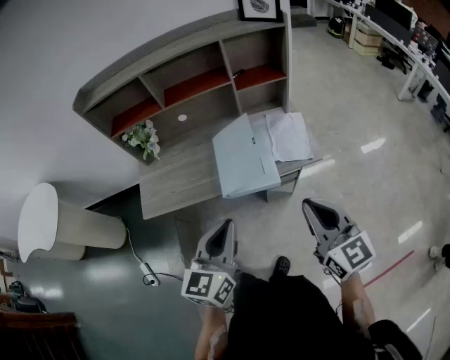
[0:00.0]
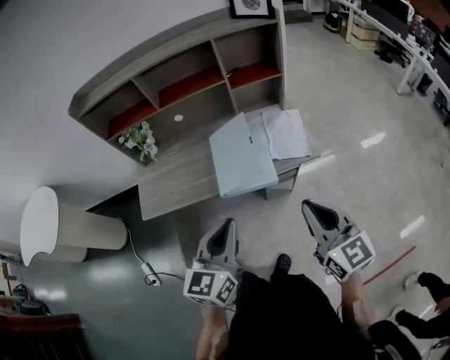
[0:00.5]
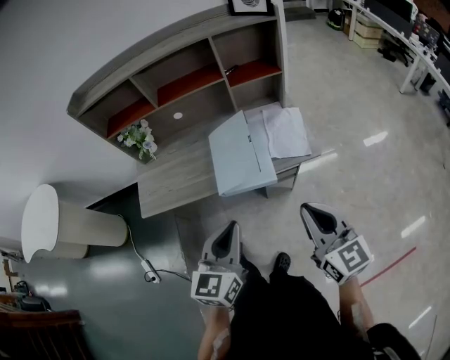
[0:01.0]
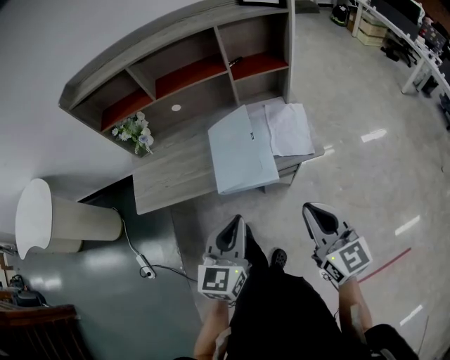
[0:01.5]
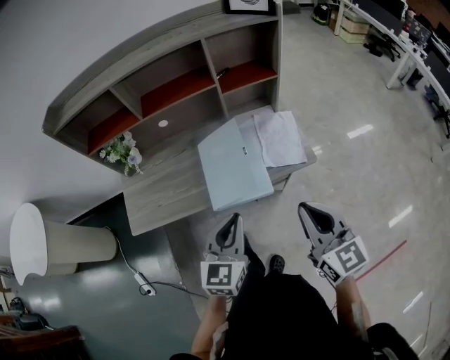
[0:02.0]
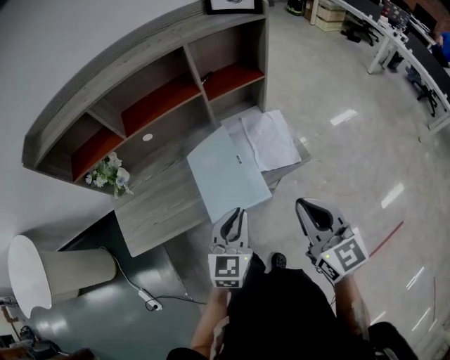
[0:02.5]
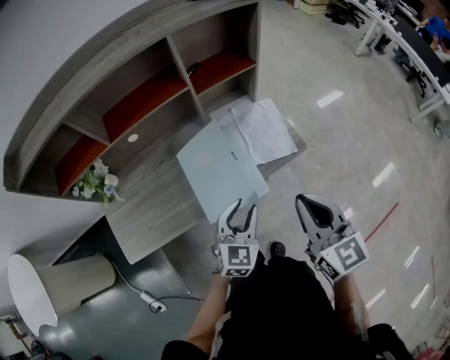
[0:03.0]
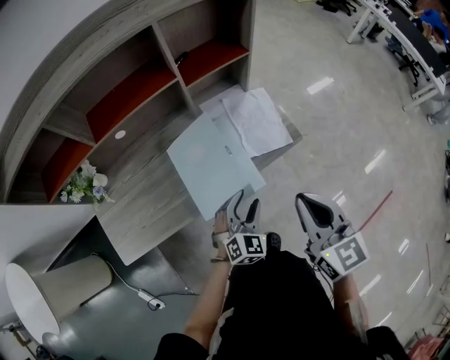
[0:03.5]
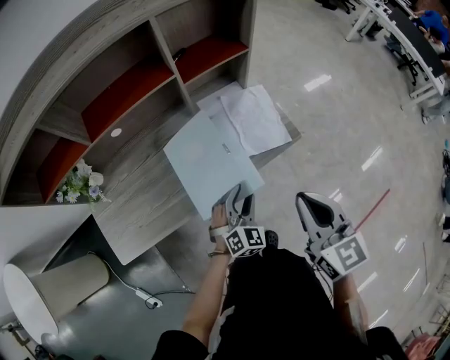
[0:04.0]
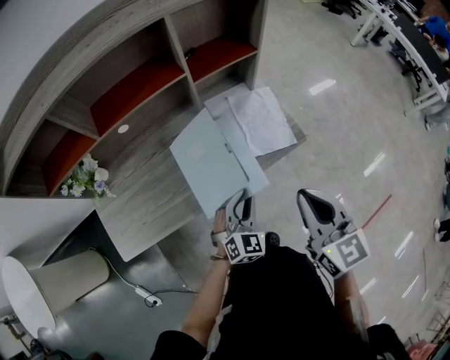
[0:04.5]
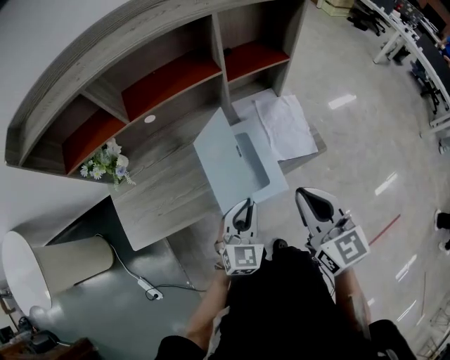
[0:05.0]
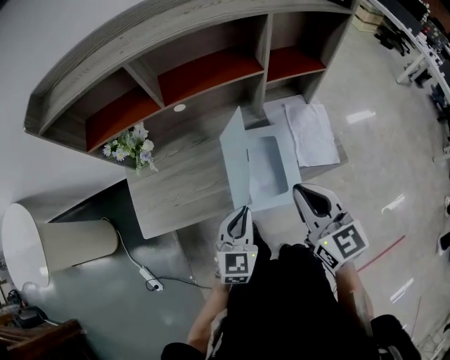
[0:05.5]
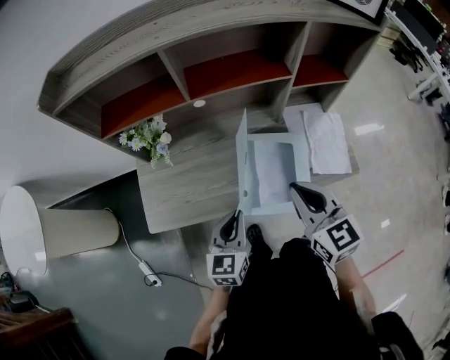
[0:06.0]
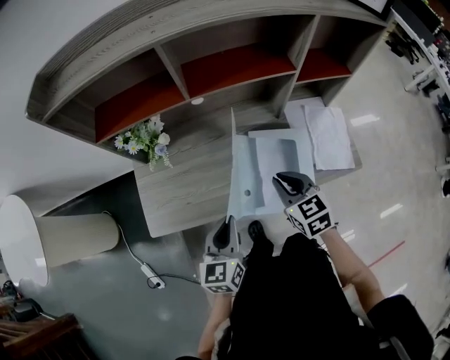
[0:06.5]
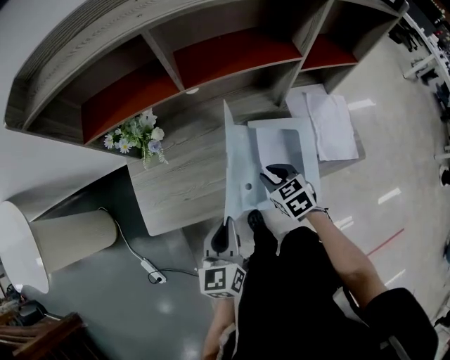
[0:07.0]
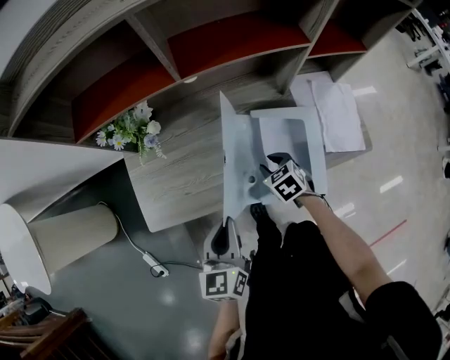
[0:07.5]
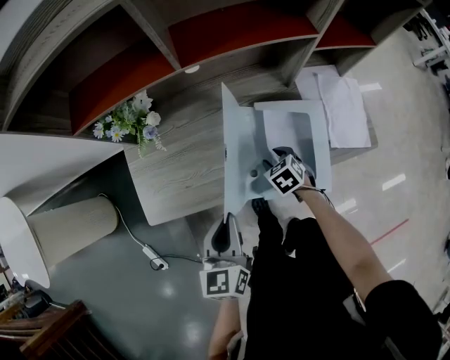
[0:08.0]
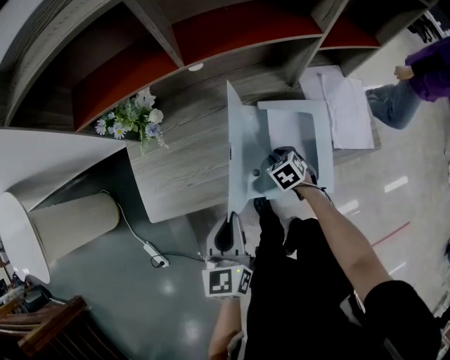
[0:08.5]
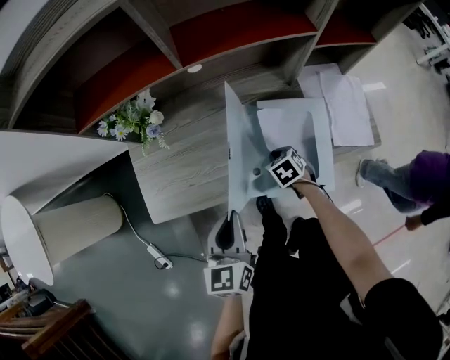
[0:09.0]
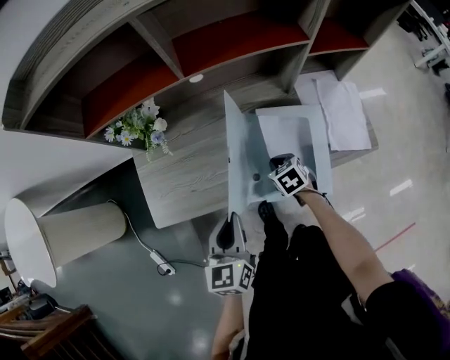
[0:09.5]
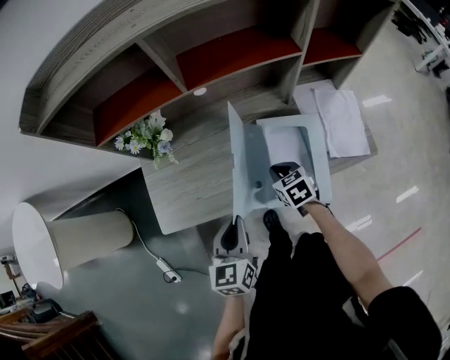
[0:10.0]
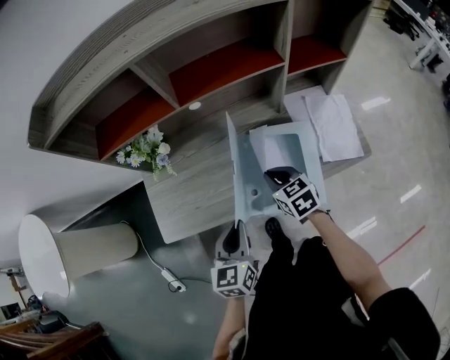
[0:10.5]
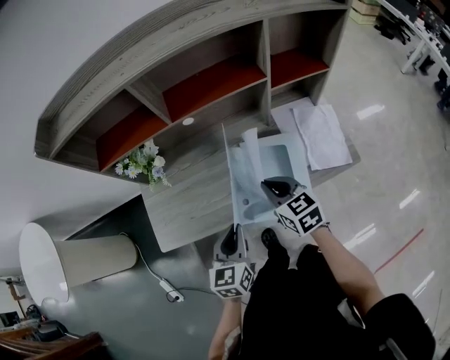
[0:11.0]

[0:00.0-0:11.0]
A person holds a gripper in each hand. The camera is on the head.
0:00.0 to 0:02.0: The right gripper travels forward by roughly 5 cm, while the left gripper goes approximately 10 cm forward and downward.
0:02.0 to 0:03.5: The right gripper travels forward by roughly 5 cm. The left gripper heads downward and forward, covering some 20 cm, changes its angle by about 40 degrees, and opens its fingers.
0:03.5 to 0:05.5: The left gripper is displaced to the left and upward by about 20 cm, swivels about 30 degrees, and closes its fingers, while the right gripper shifts about 15 cm to the left.
0:05.5 to 0:07.5: The left gripper moves to the left, about 15 cm, and changes its angle by some 30 degrees; the right gripper shifts about 30 cm downward, tips its fingers downward by roughly 40 degrees, and opens its fingers.
0:07.5 to 0:09.0: The right gripper shifts approximately 5 cm downward, and closes its fingers.
0:09.0 to 0:11.0: The right gripper goes some 25 cm upward, and angles its fingers upward, by about 30 degrees. Meanwhile the left gripper moves to the right, about 5 cm.

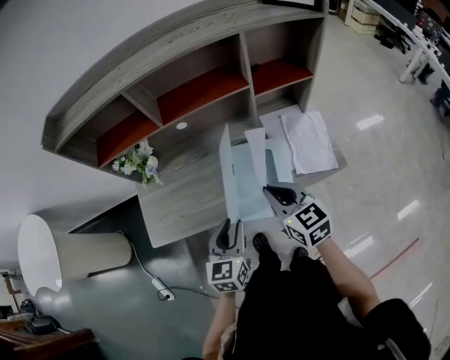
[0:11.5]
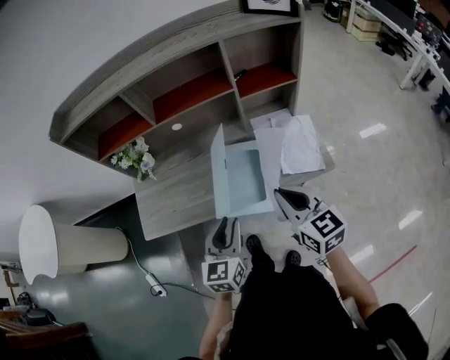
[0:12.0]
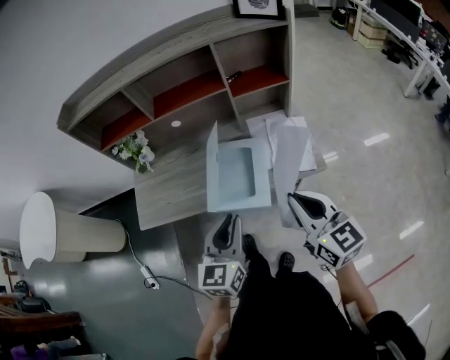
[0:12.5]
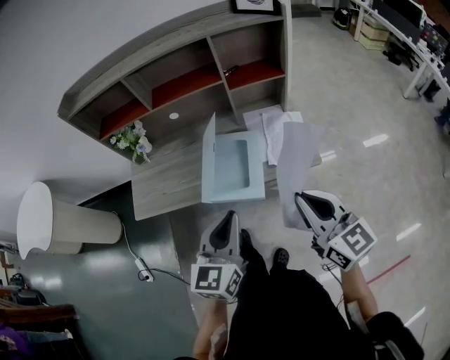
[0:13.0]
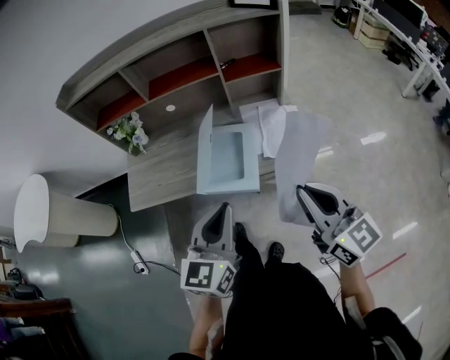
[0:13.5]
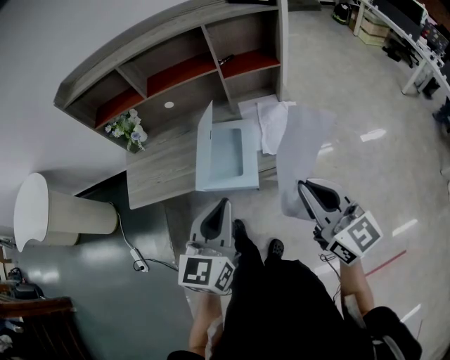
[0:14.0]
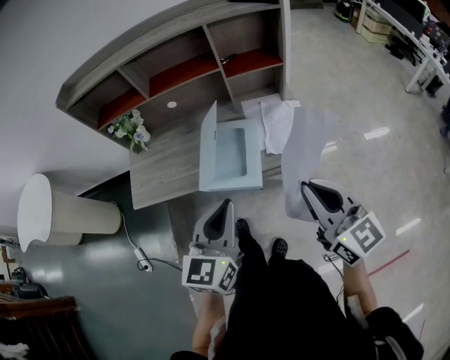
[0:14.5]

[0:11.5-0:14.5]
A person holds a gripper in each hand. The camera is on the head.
0:11.5 to 0:13.0: The left gripper is displaced backward, upward and to the right by about 25 cm, and closes, while the right gripper shifts about 30 cm backward, to the right and upward.
0:13.0 to 0:14.5: The grippers make only small movements.

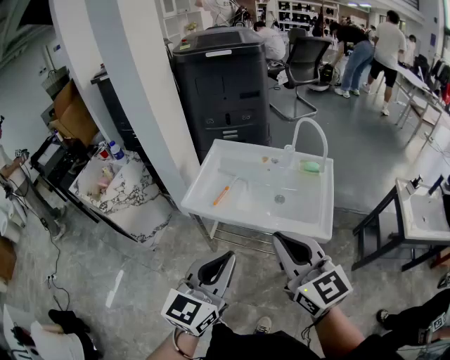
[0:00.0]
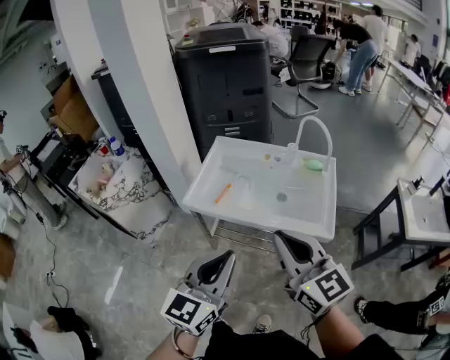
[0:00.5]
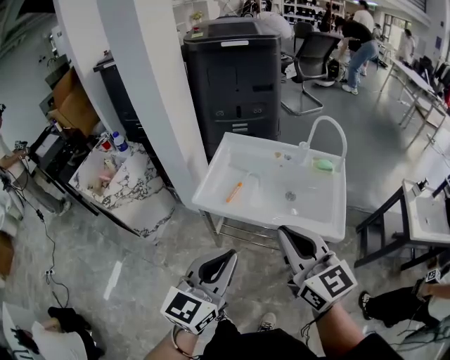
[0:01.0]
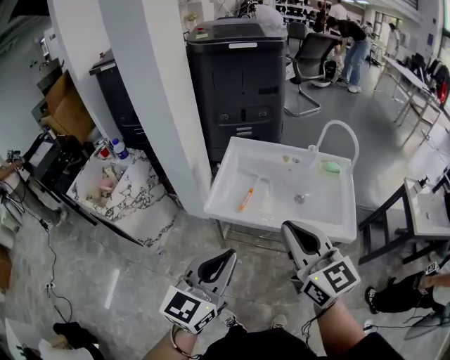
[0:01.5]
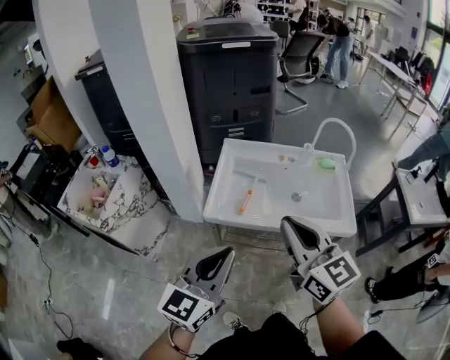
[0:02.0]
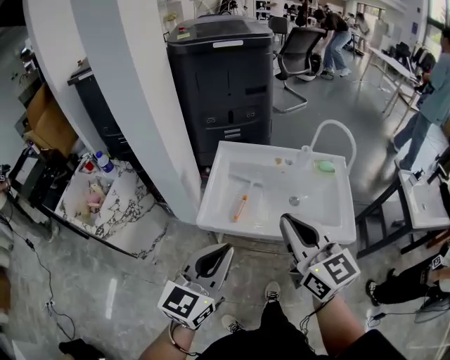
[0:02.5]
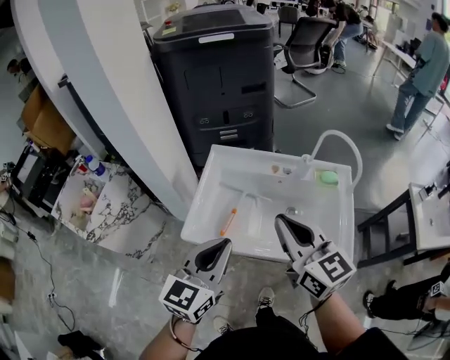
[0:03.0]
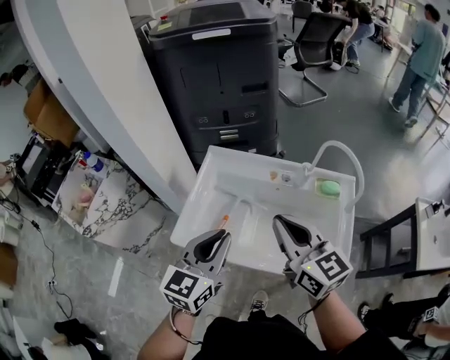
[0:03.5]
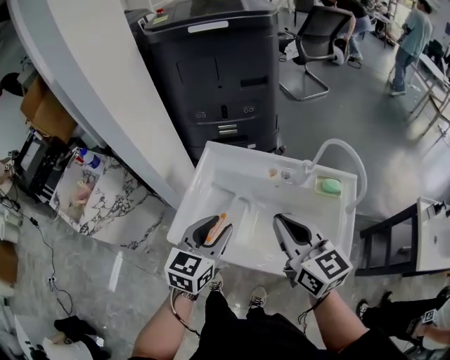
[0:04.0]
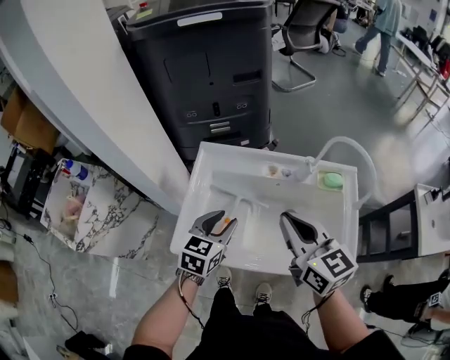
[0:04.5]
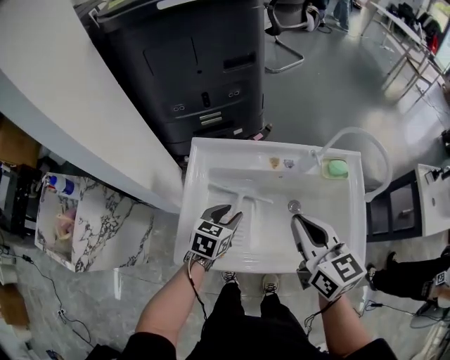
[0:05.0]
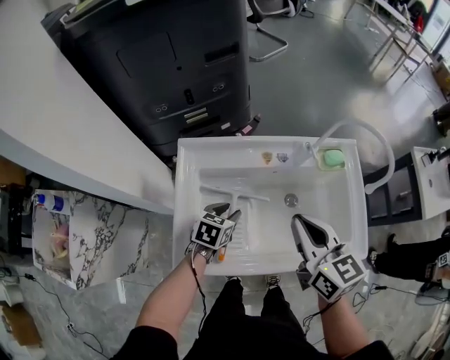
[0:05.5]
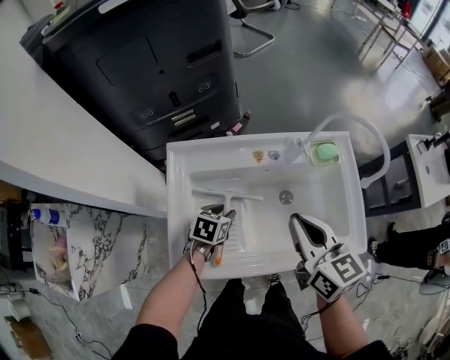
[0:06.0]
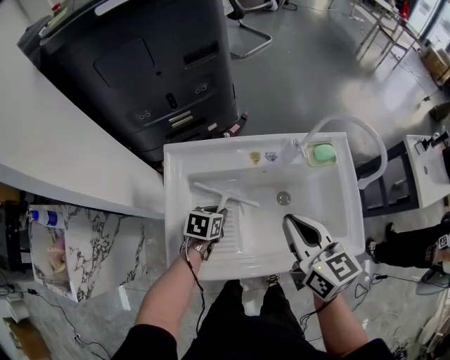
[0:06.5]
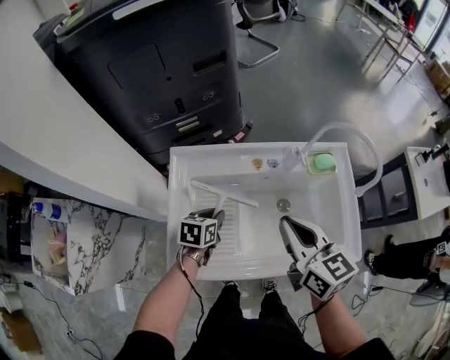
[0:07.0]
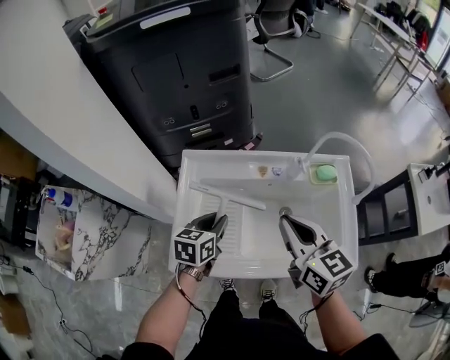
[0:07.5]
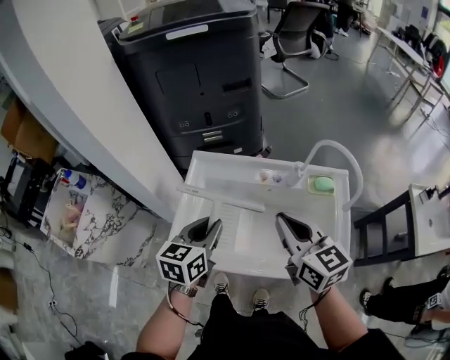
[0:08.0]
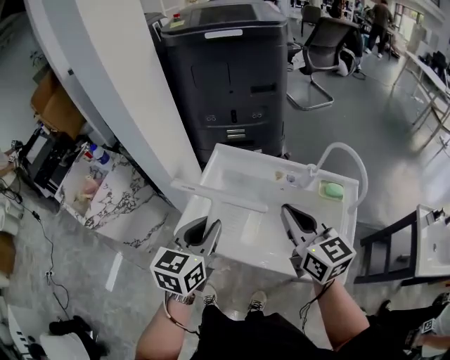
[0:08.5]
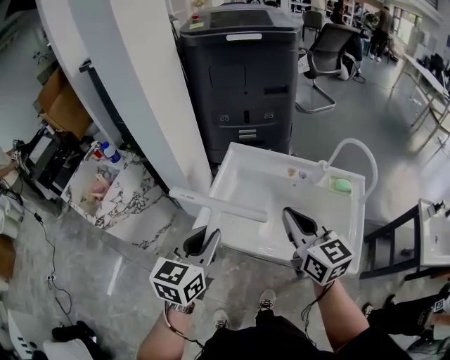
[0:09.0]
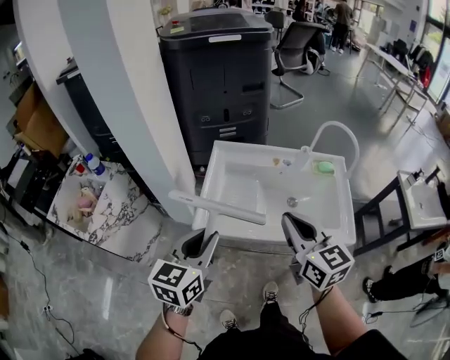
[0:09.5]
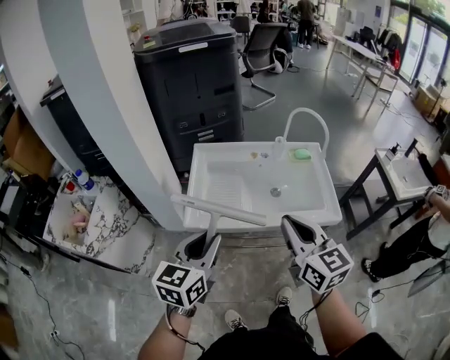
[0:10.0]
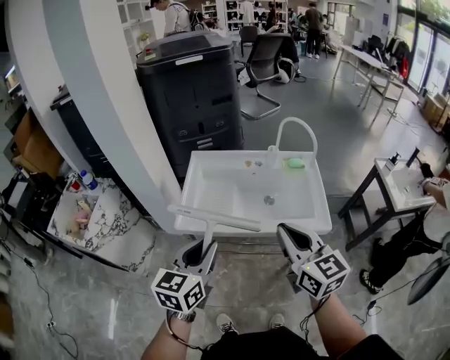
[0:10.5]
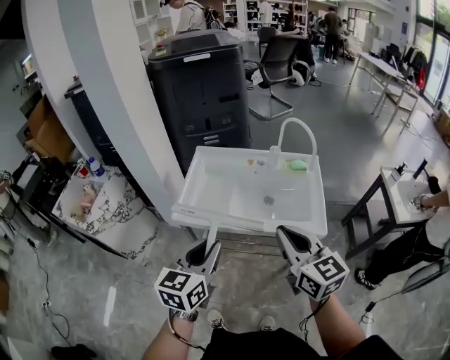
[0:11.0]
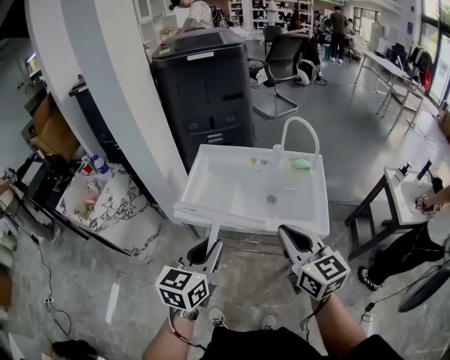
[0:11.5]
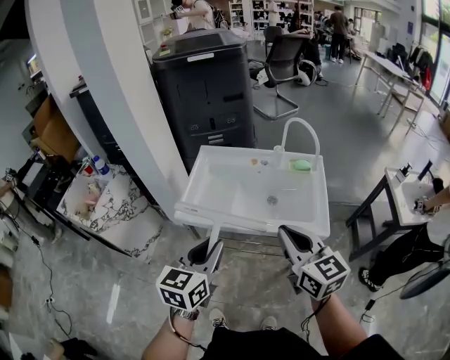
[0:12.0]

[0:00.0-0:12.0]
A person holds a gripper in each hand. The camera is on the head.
0:00.0 to 0:02.0: The grippers both shift to the left and forward by approximately 20 cm.
0:02.0 to 0:04.0: The right gripper goes roughly 25 cm forward and to the right; the left gripper heads forward, to the right and downward, covering roughly 30 cm, rotates roughly 20 degrees, and opens its fingers.
0:04.0 to 0:06.0: The left gripper is displaced downward by roughly 25 cm, and tips its fingers downward by some 30 degrees; the right gripper shifts approximately 10 cm downward, and swivels some 30 degrees.
0:06.0 to 0:08.0: The left gripper shifts roughly 25 cm upward, and changes its angle by about 40 degrees, while the right gripper goes about 5 cm upward, and swivels roughly 20 degrees.
0:08.0 to 0:10.0: Both grippers travel together backward, approximately 25 cm.
0:10.0 to 0:12.0: The right gripper goes about 10 cm to the right. Meanwhile the left gripper shifts some 15 cm to the right and backward.
